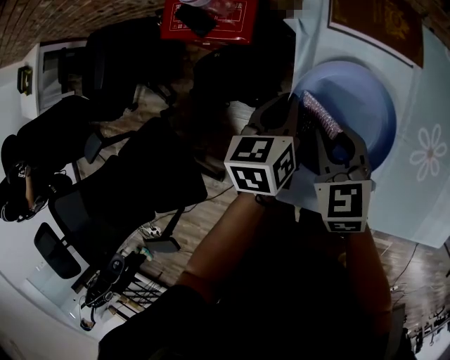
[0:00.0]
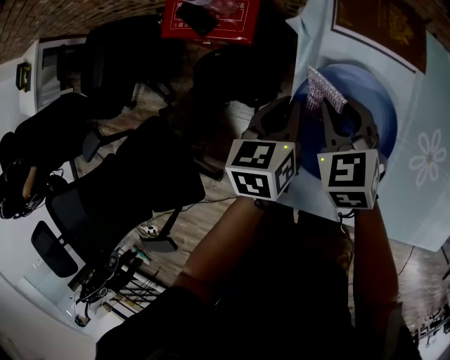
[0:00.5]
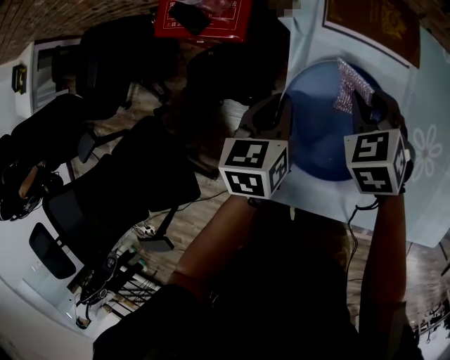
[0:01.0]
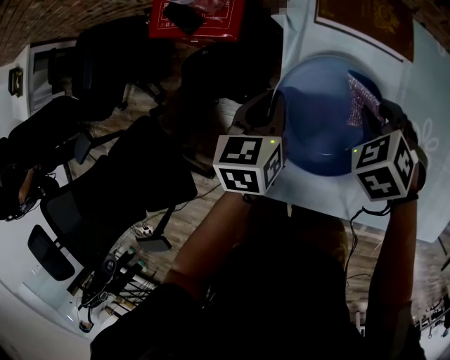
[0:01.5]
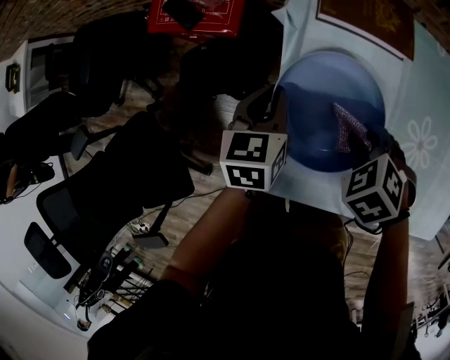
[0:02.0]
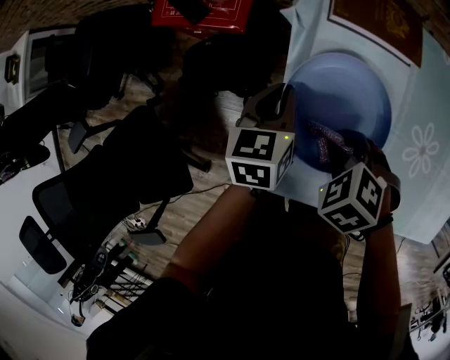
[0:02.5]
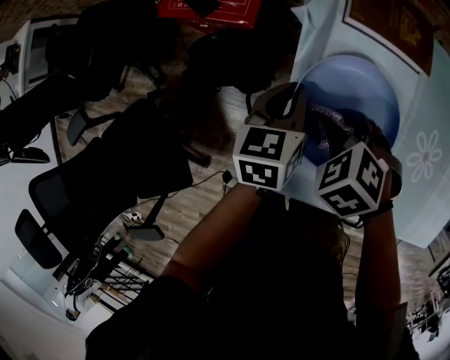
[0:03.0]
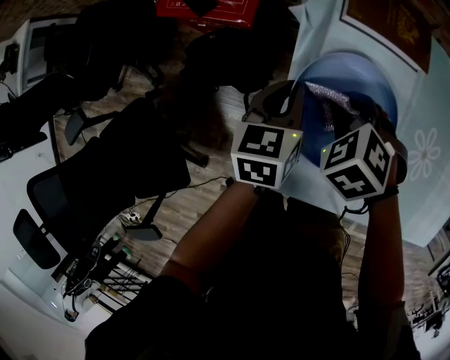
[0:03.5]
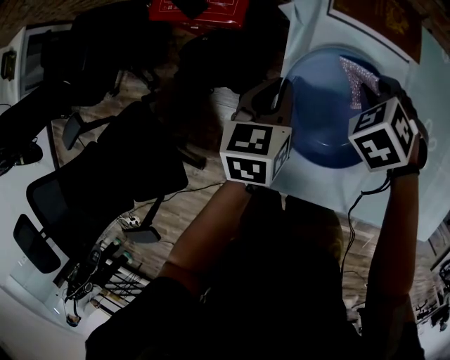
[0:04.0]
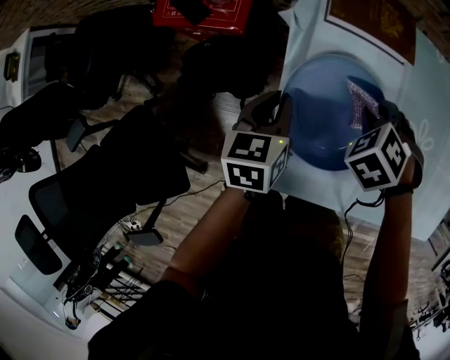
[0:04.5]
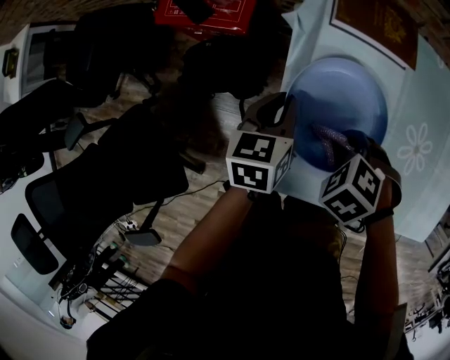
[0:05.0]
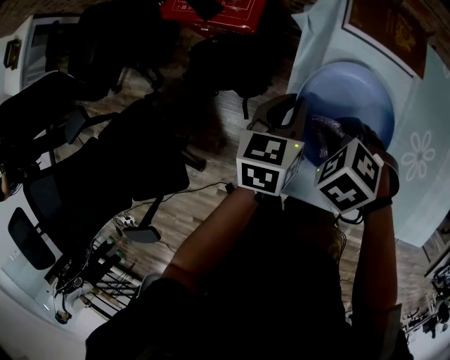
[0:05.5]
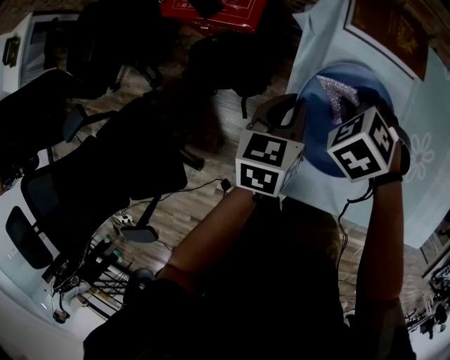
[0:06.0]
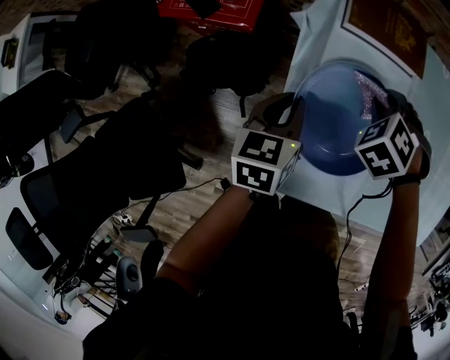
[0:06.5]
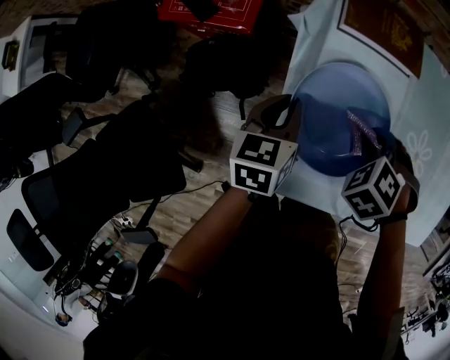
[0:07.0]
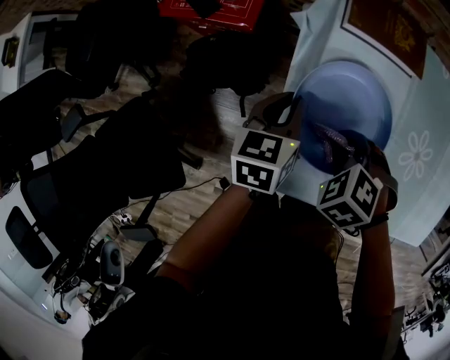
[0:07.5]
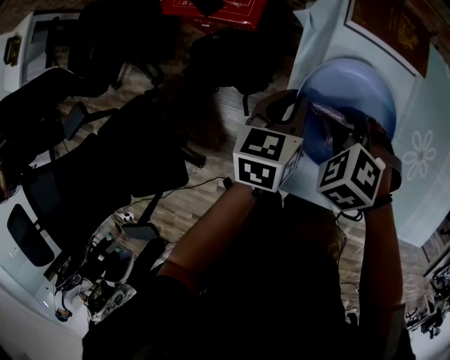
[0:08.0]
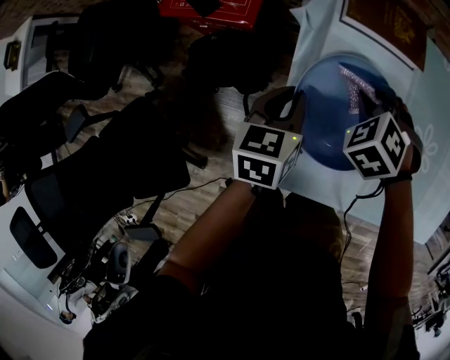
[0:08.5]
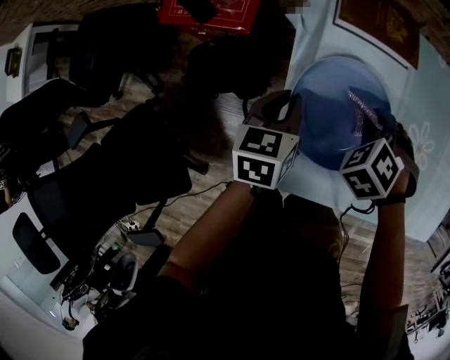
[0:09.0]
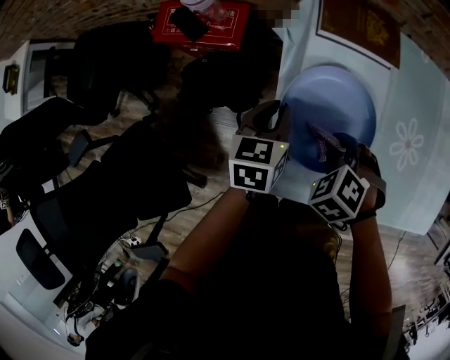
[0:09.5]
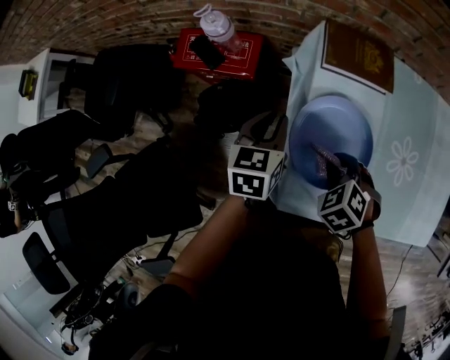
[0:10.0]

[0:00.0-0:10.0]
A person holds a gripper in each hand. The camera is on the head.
0:00.0 to 0:02.0: The right gripper shifts by roughly 10 cm, and tips its fingers downward by roughly 30 degrees.
0:02.0 to 0:04.0: The right gripper changes place by roughly 10 cm.
0:08.0 to 0:10.0: The right gripper goes forward and returns, roughly 10 cm each way. Meanwhile the left gripper travels upward by some 5 cm.

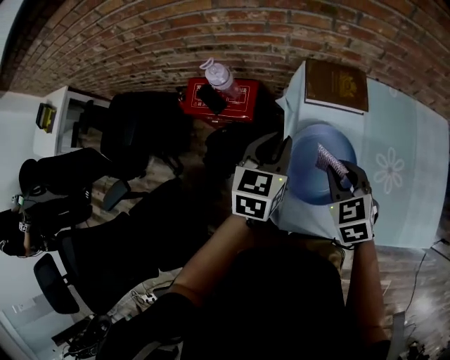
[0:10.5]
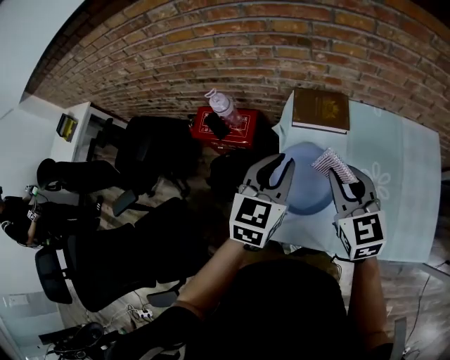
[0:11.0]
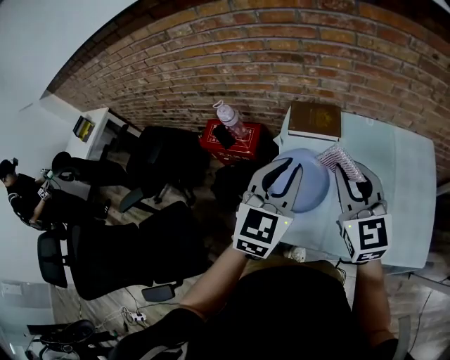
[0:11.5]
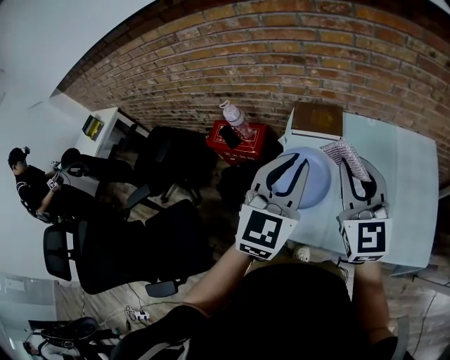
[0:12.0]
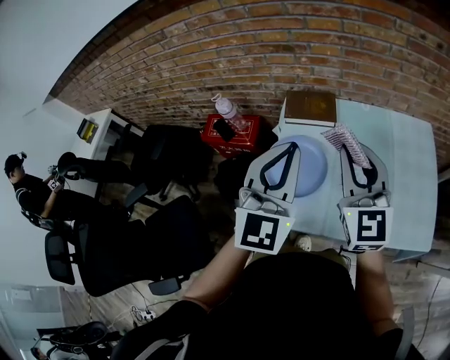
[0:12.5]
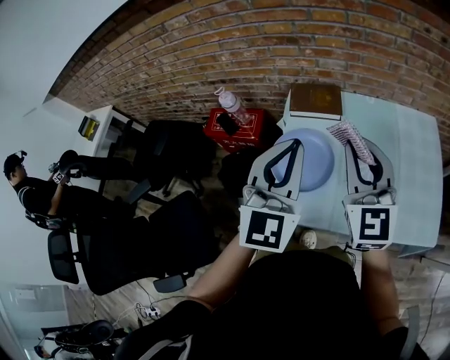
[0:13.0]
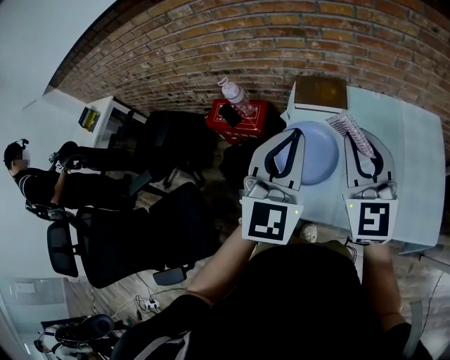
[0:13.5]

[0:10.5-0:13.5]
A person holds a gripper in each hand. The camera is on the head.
0:10.5 to 0:12.0: The left gripper moves upward, to the right and backward, about 35 cm, and turns by approximately 30 degrees, while the right gripper travels upward and to the right by approximately 30 cm, and angles its fingers upward, by about 40 degrees.
0:12.0 to 0:13.5: The grippers make only small movements.

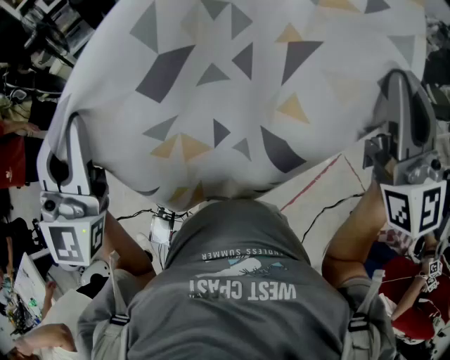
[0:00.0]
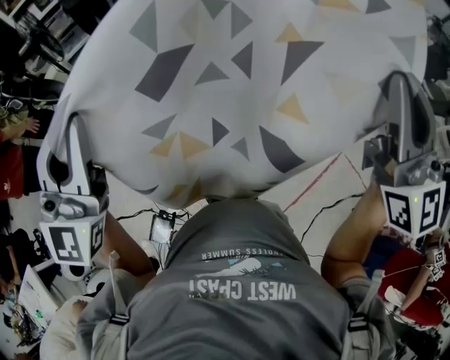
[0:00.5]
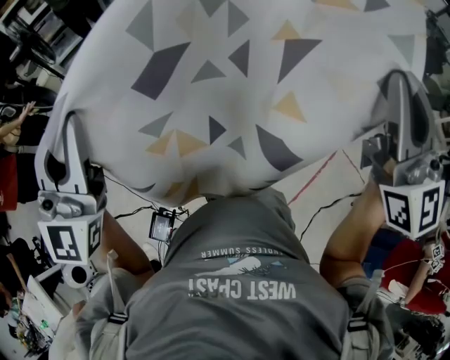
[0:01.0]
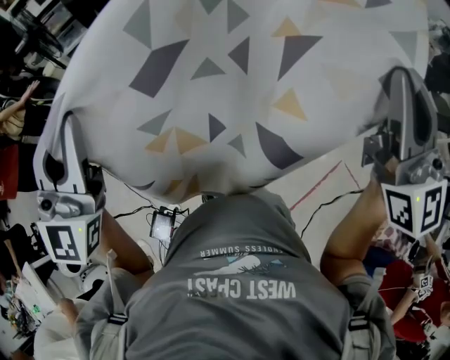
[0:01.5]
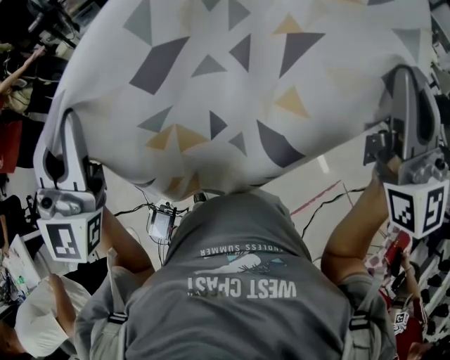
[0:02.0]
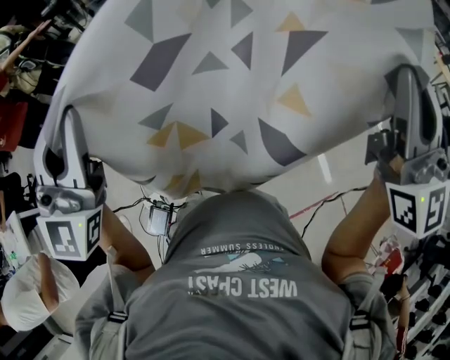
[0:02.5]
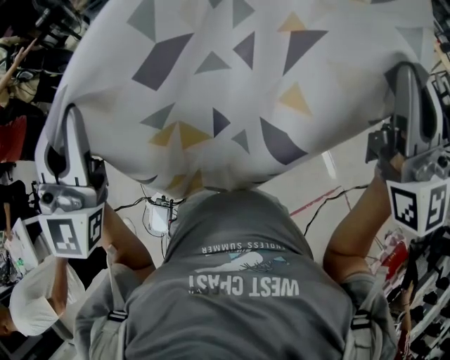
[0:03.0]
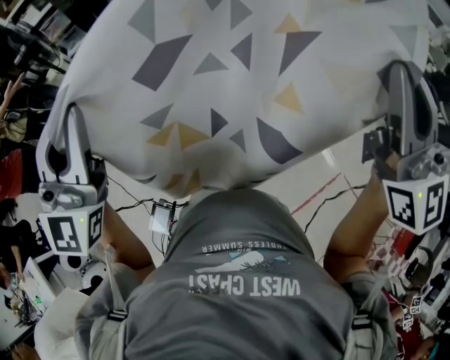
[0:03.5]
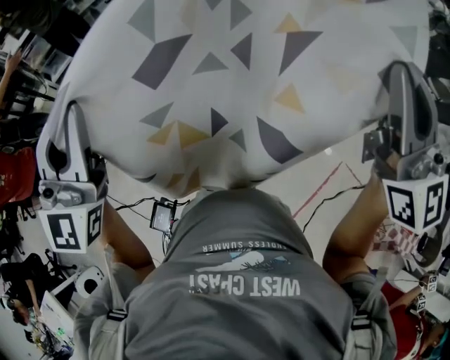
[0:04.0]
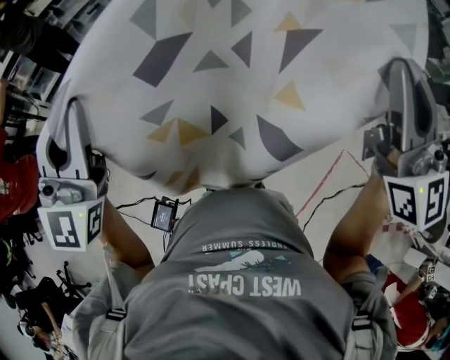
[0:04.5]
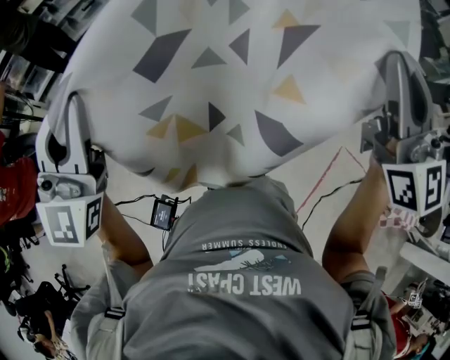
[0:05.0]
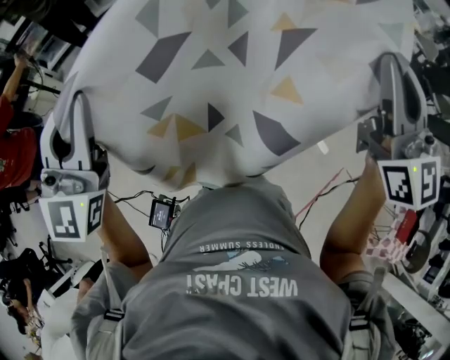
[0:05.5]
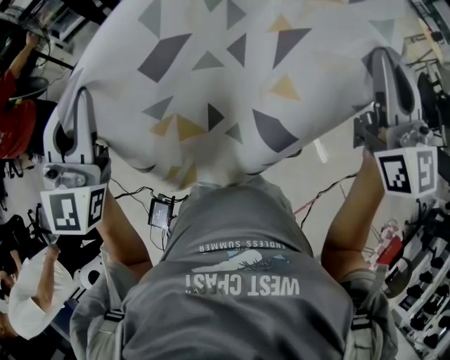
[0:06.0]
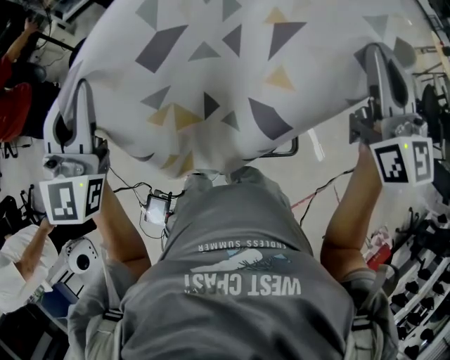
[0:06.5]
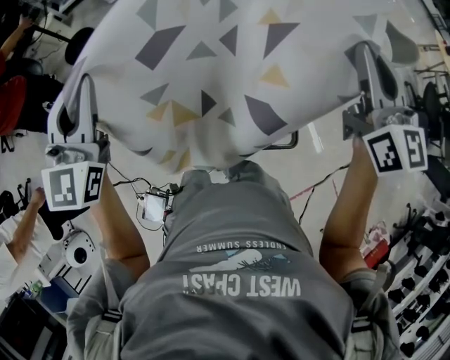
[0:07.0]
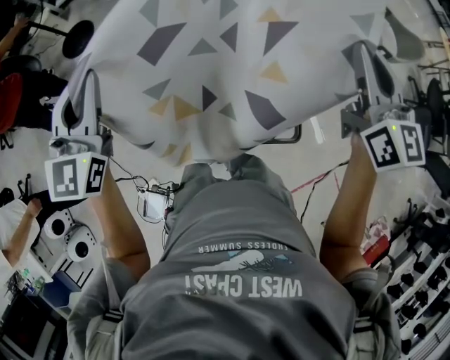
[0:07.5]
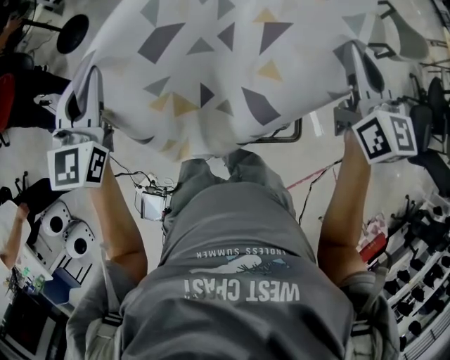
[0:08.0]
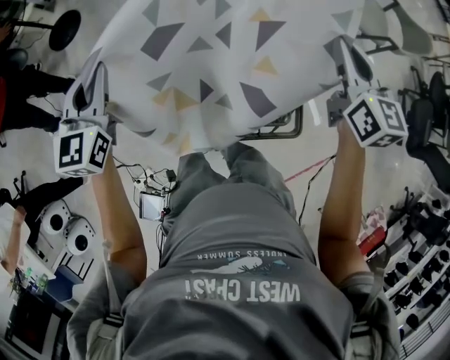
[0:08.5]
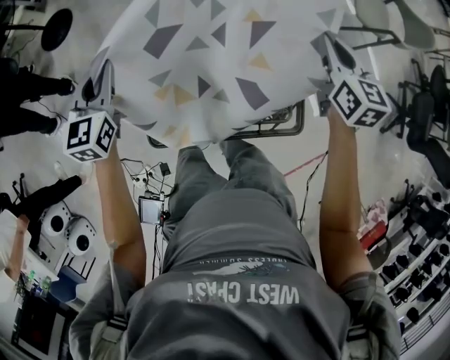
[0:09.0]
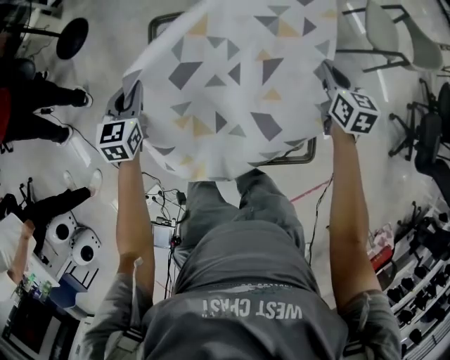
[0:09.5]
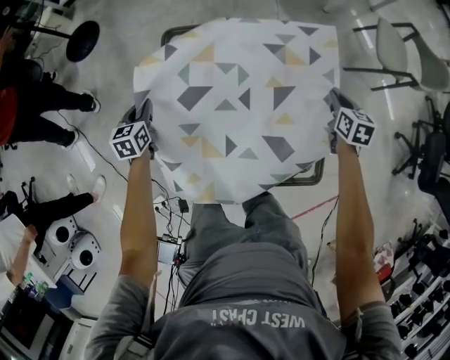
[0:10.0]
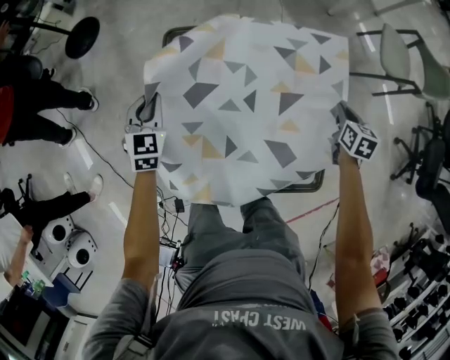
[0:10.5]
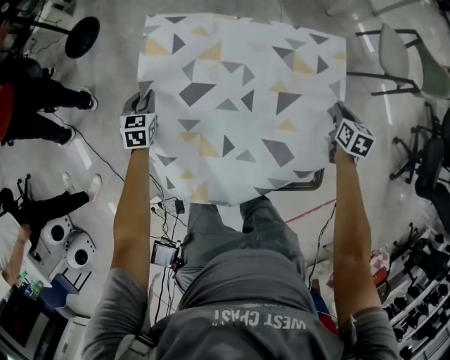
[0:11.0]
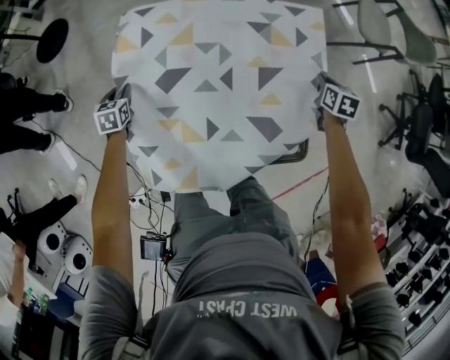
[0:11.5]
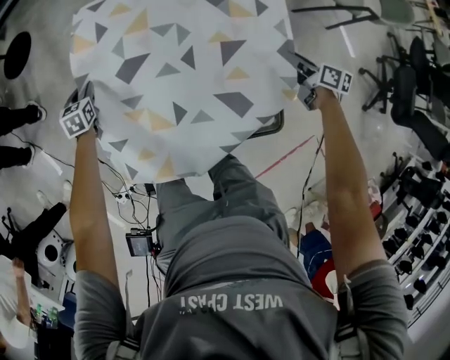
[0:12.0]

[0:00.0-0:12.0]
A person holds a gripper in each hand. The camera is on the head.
0:00.0 to 0:04.0: The grippers stay close to where they were, moving slightly.
0:04.0 to 0:06.0: The left gripper shifts about 15 cm forward, to the left and downward. The right gripper goes about 25 cm forward and to the left.
0:06.0 to 0:08.0: The right gripper travels downward and forward by about 20 cm, and rotates some 20 degrees, while the left gripper goes about 15 cm downward, and rotates some 20 degrees.
0:08.0 to 0:10.0: The grippers both shift downward by roughly 35 cm. The right gripper tilts its fingers about 40 degrees downward. Meanwhile the left gripper turns by some 40 degrees.
0:10.0 to 0:12.0: The left gripper heads downward, covering some 10 cm. Meanwhile the right gripper shifts about 10 cm downward and backward, swivels roughly 40 degrees, and opens up.

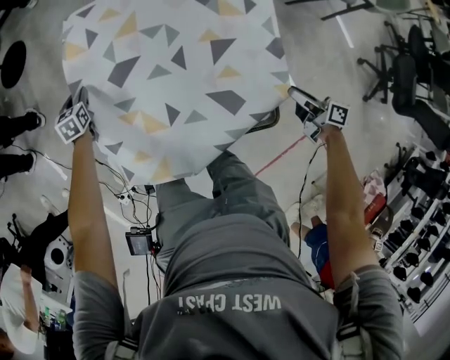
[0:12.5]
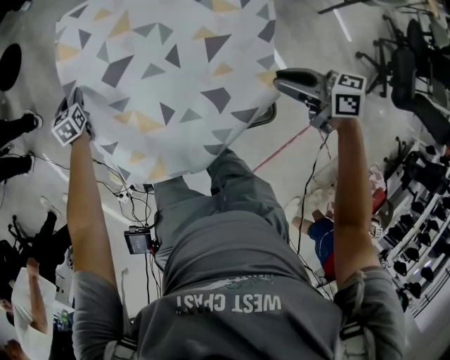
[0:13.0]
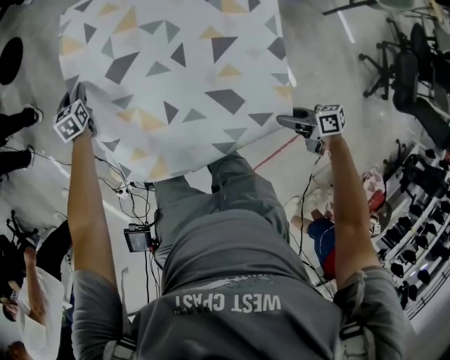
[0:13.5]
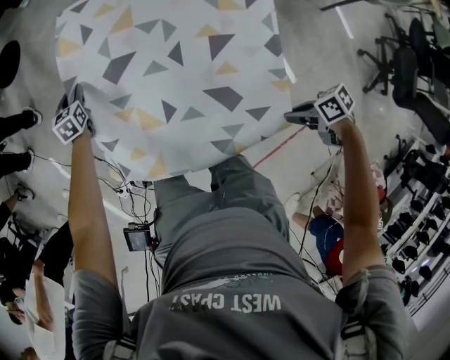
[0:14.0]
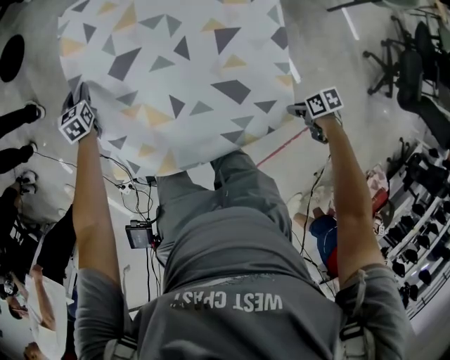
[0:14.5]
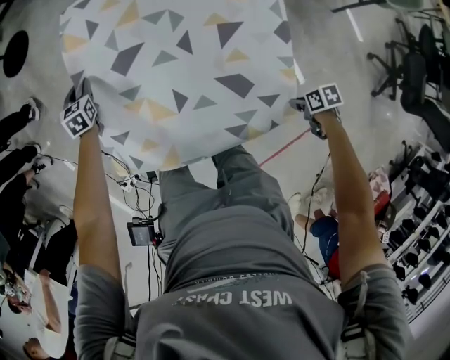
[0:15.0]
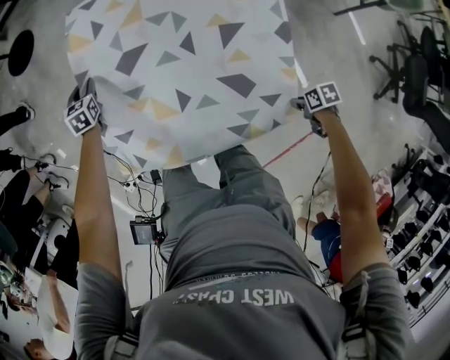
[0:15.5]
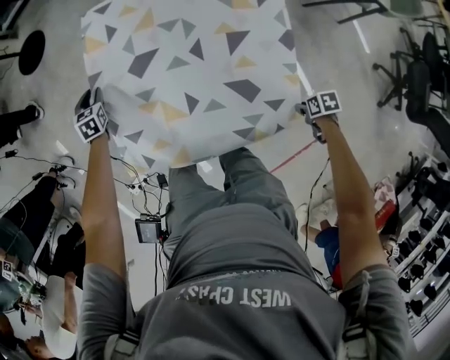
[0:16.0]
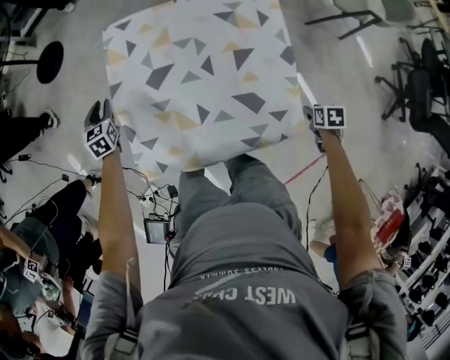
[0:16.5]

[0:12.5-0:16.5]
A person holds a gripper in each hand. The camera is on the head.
0:12.5 to 0:14.5: The right gripper shifts by some 15 cm, tilts its fingers some 30 degrees downward, and closes its fingers.
0:14.5 to 0:16.5: The right gripper moves some 10 cm, swivels approximately 30 degrees, and opens up; the left gripper moves upward, roughly 10 cm.
